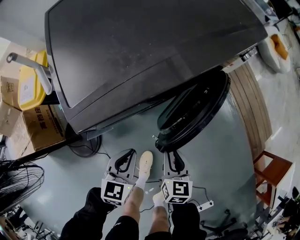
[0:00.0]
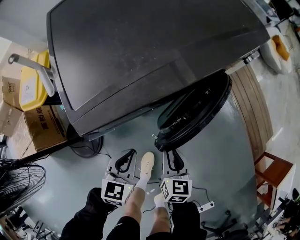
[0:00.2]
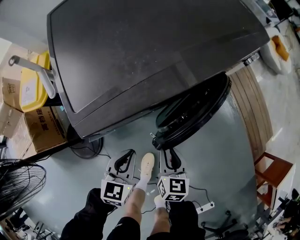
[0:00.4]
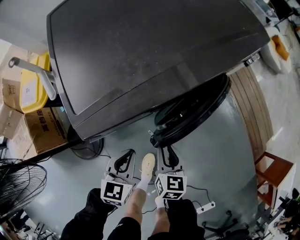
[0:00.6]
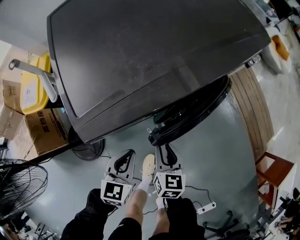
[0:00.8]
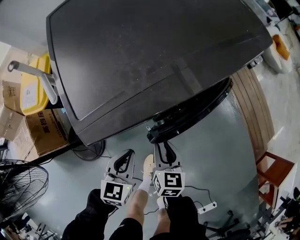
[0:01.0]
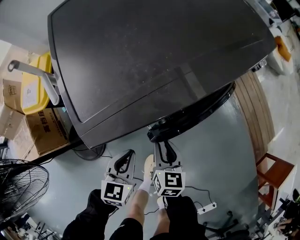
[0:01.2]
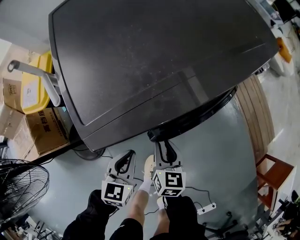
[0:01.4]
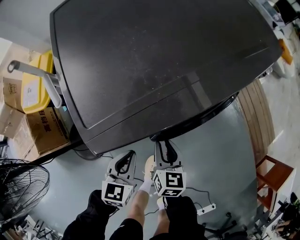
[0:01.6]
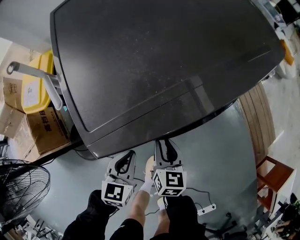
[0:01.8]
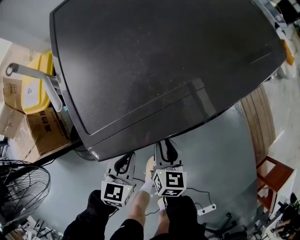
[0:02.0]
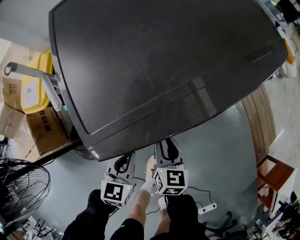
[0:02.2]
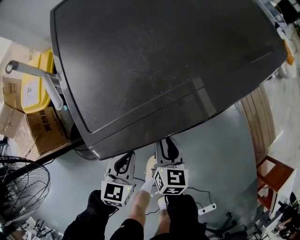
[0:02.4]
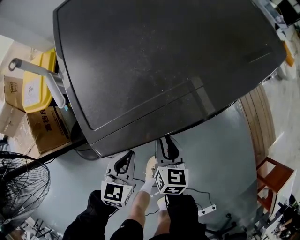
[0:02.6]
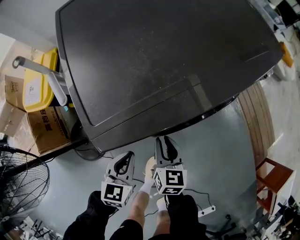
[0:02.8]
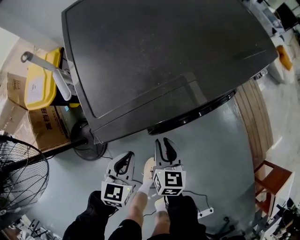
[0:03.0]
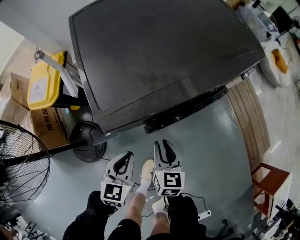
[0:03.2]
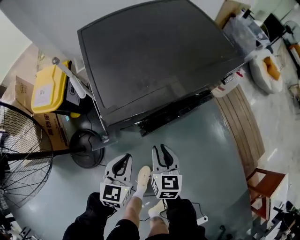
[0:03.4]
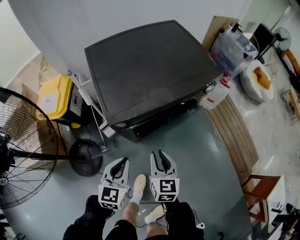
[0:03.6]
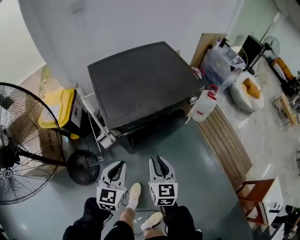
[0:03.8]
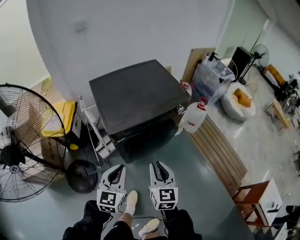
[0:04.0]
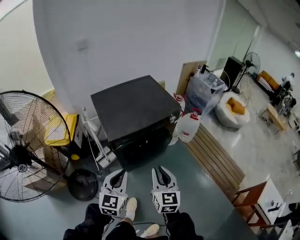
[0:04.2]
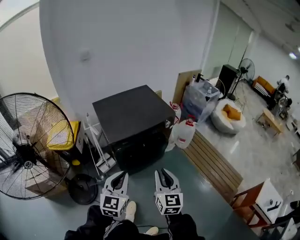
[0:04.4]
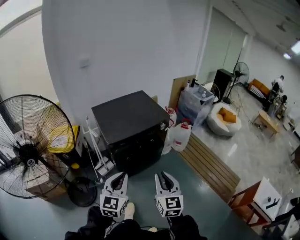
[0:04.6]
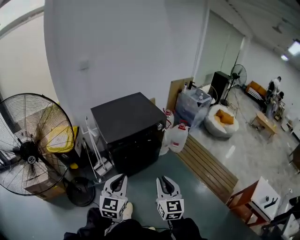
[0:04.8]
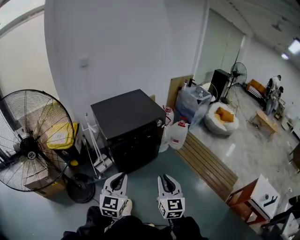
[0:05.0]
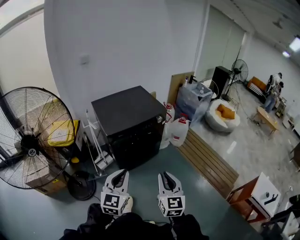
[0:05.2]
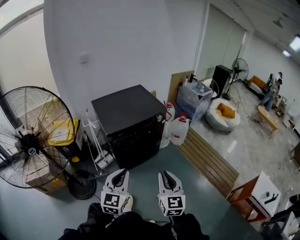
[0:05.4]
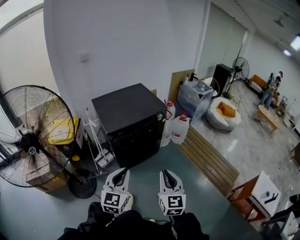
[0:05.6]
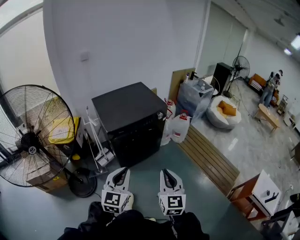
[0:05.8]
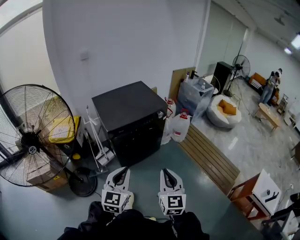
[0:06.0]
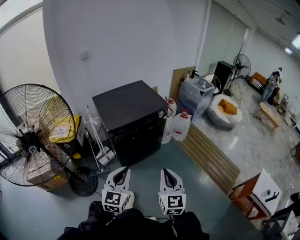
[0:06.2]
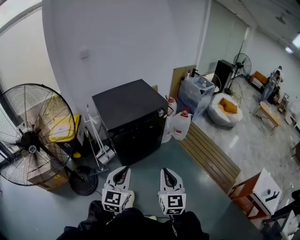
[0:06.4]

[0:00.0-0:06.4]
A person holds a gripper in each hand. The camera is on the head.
0:00.0 to 0:01.6: The right gripper shifts approximately 10 cm to the left and forward. The left gripper heads to the left, covering roughly 5 cm.
0:01.6 to 0:03.2: The right gripper travels upward by some 5 cm. Meanwhile the left gripper ends up some 5 cm from where it was.
0:03.2 to 0:04.8: The left gripper moves upward and backward, roughly 60 cm, and swivels approximately 30 degrees; the right gripper shifts about 60 cm upward, backward and to the right, and turns by about 30 degrees.
0:04.8 to 0:06.4: The grippers move only a little.

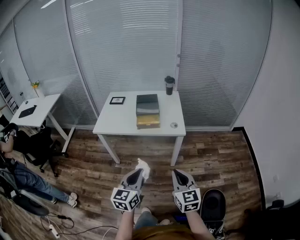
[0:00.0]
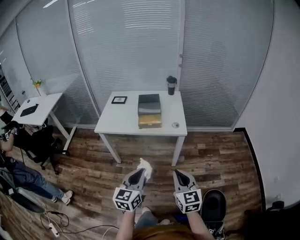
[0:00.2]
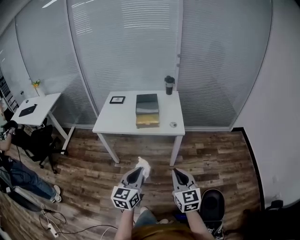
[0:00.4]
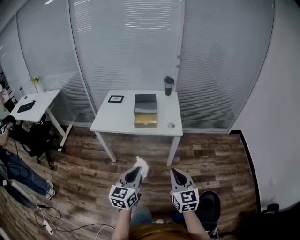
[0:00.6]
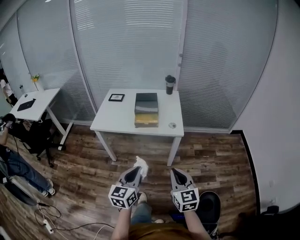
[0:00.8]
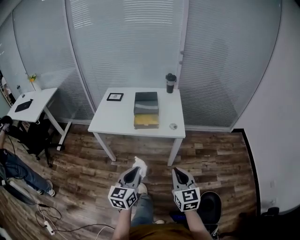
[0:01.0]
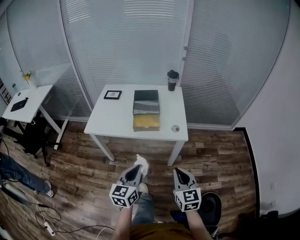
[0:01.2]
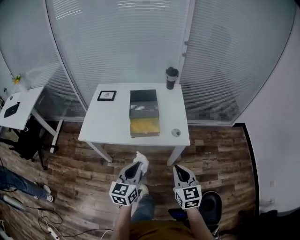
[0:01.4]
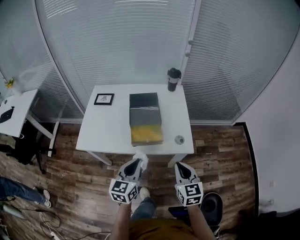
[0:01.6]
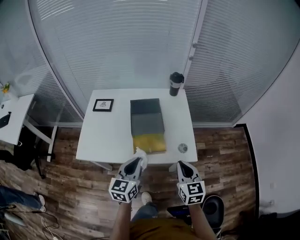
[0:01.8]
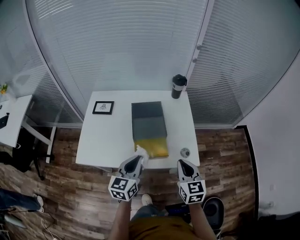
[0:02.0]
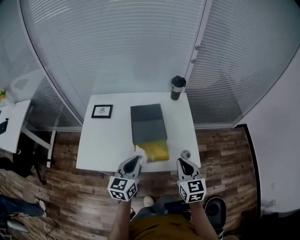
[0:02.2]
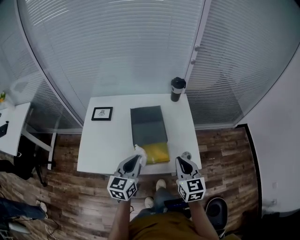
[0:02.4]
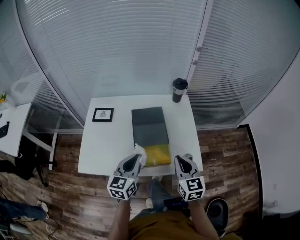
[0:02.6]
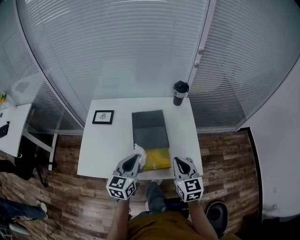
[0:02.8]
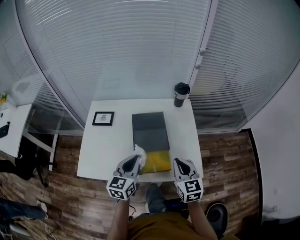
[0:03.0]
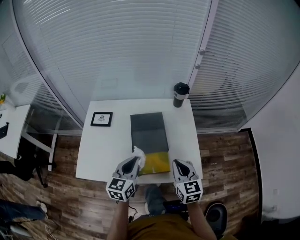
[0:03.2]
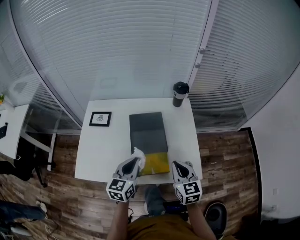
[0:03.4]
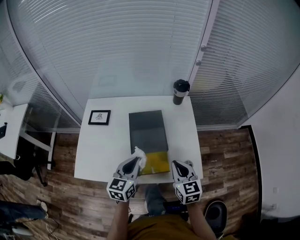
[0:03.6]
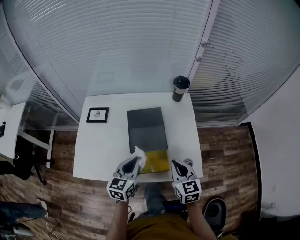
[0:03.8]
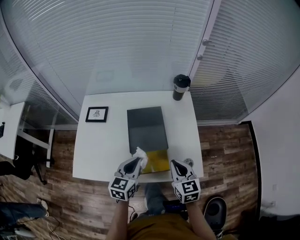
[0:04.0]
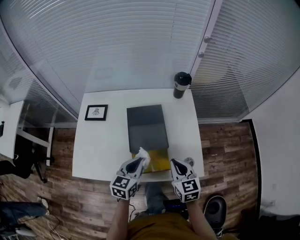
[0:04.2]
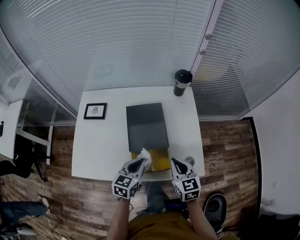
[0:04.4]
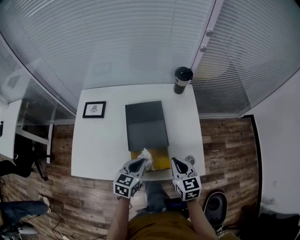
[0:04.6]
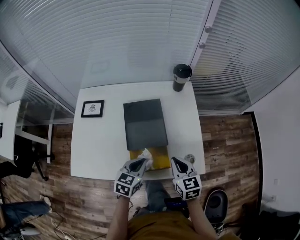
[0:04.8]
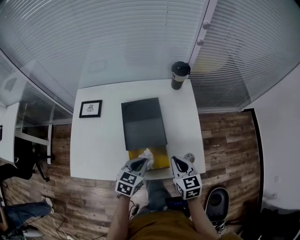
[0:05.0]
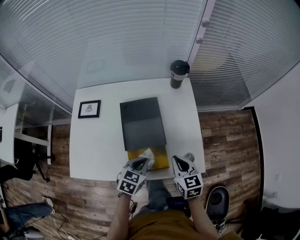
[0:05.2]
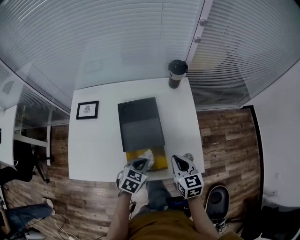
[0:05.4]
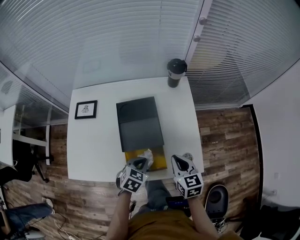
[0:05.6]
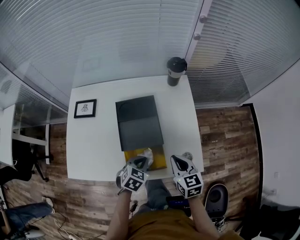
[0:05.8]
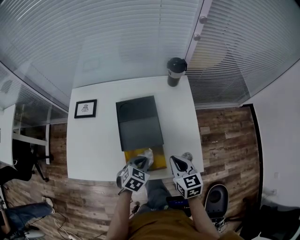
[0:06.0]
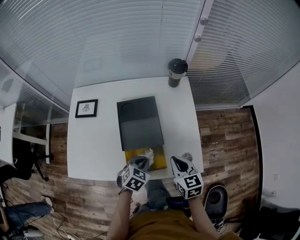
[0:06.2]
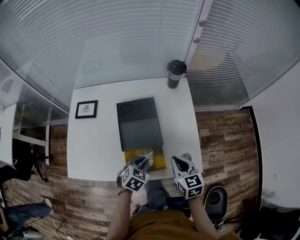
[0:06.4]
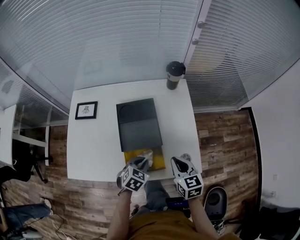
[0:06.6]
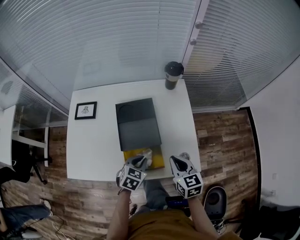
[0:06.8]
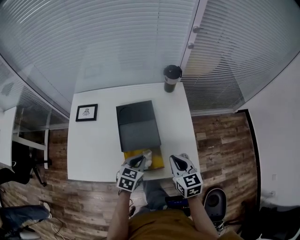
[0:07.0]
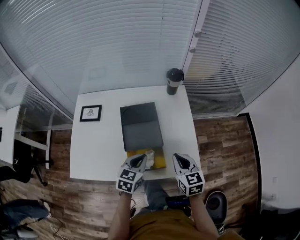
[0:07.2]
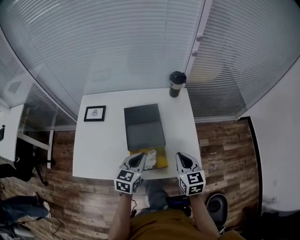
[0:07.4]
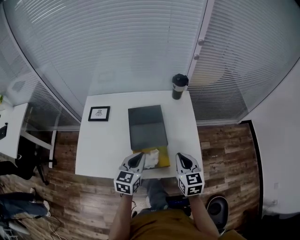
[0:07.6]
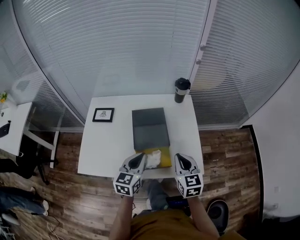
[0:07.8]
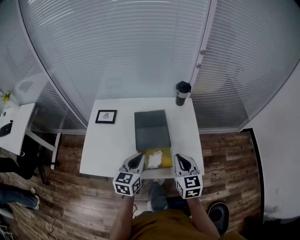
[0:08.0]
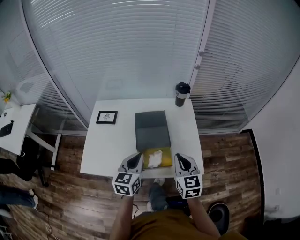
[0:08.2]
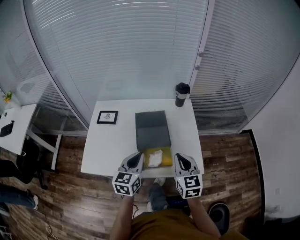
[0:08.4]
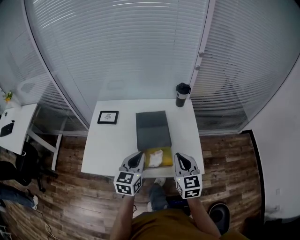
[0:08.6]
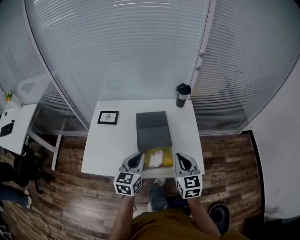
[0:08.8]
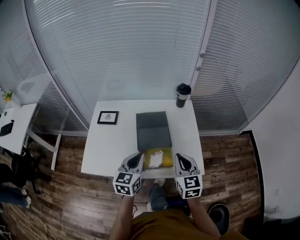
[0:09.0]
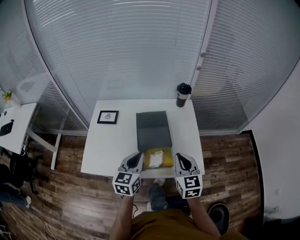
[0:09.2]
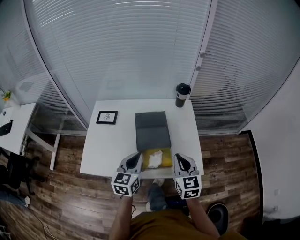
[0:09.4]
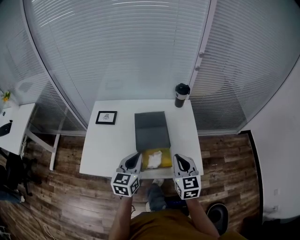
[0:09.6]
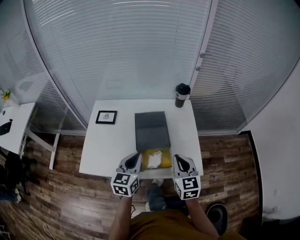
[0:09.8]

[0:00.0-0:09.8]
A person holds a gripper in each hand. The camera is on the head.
0:00.0 to 0:01.4: Both grippers move forward, some 20 cm.
0:01.4 to 0:02.8: Both grippers move forward, roughly 25 cm.
0:02.8 to 0:04.2: The two grippers go about 5 cm downward.
0:04.2 to 0:05.6: The right gripper ends up about 5 cm from where it was. The left gripper goes some 10 cm downward, and rotates some 30 degrees.
0:05.6 to 0:07.0: The grippers move only a little.
0:07.0 to 0:08.4: The left gripper moves upward and to the left, roughly 15 cm, and rotates some 30 degrees. The right gripper is displaced upward by some 10 cm.
0:08.4 to 0:09.8: The two grippers keep their place.

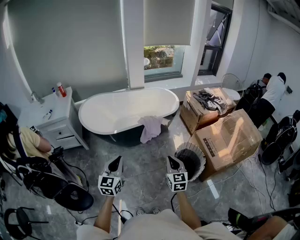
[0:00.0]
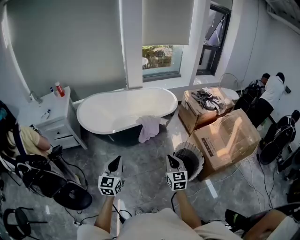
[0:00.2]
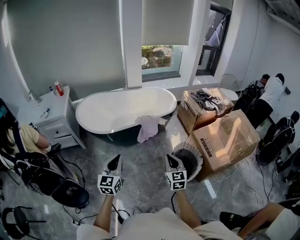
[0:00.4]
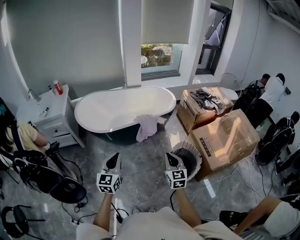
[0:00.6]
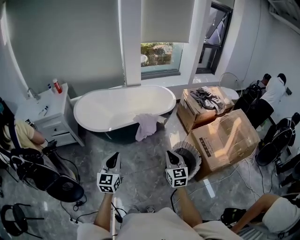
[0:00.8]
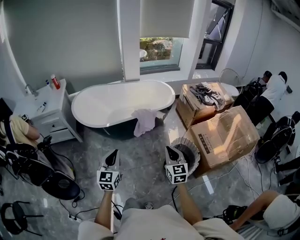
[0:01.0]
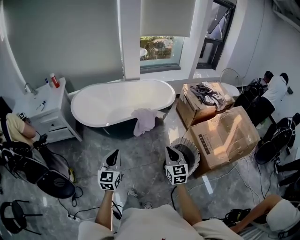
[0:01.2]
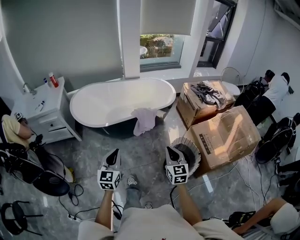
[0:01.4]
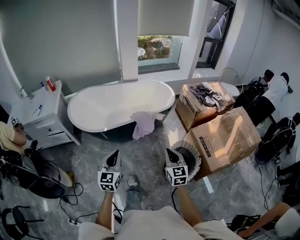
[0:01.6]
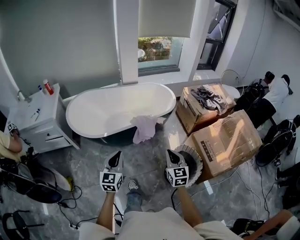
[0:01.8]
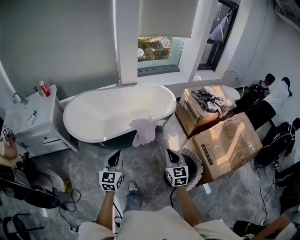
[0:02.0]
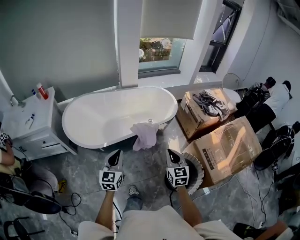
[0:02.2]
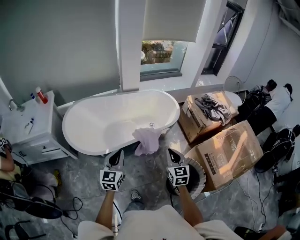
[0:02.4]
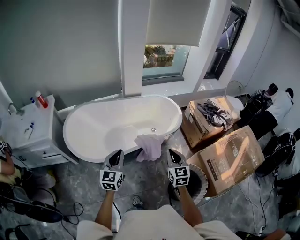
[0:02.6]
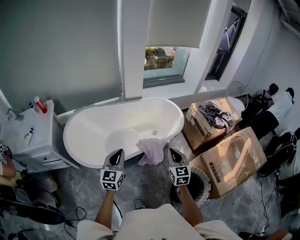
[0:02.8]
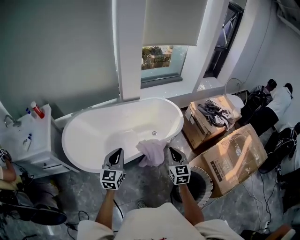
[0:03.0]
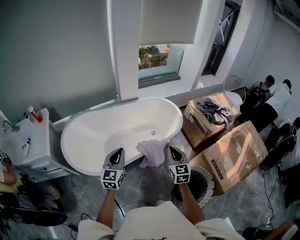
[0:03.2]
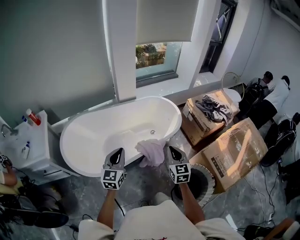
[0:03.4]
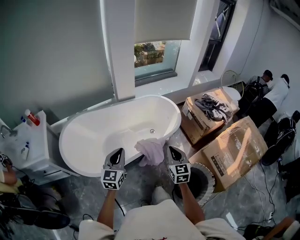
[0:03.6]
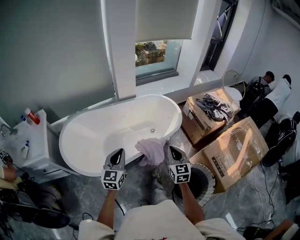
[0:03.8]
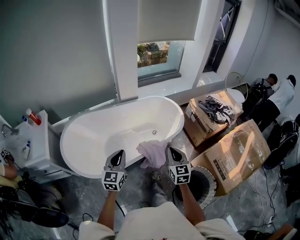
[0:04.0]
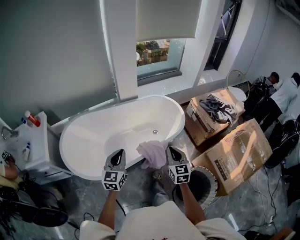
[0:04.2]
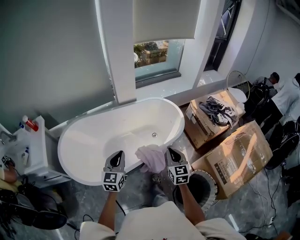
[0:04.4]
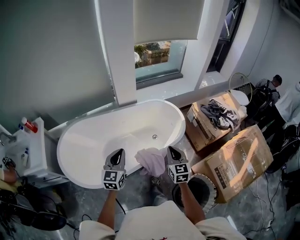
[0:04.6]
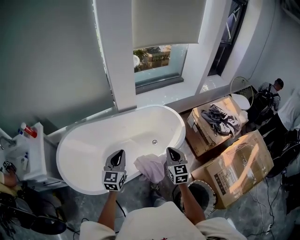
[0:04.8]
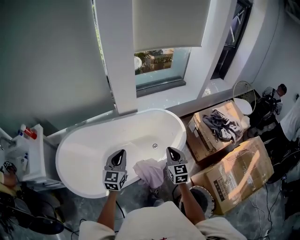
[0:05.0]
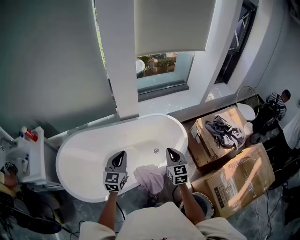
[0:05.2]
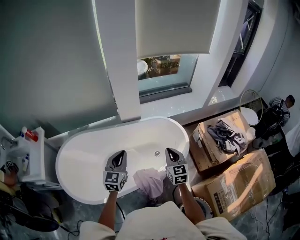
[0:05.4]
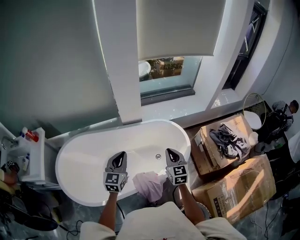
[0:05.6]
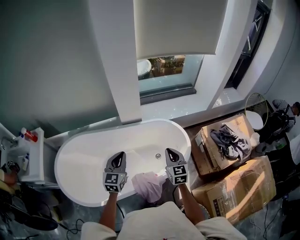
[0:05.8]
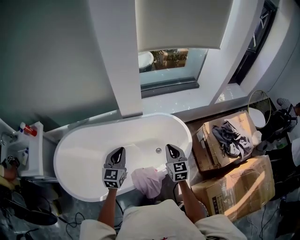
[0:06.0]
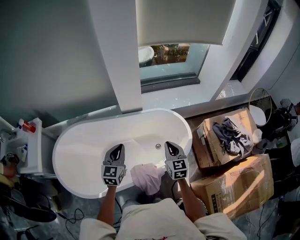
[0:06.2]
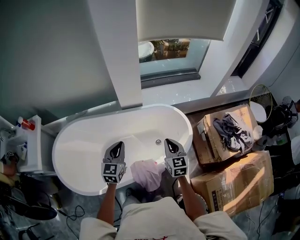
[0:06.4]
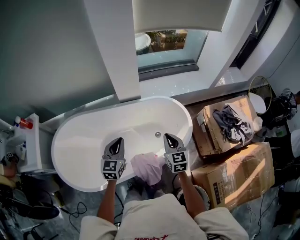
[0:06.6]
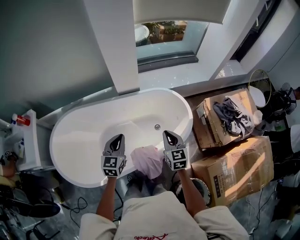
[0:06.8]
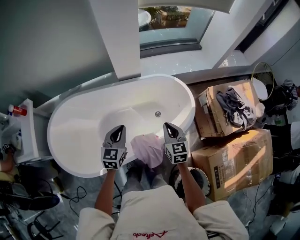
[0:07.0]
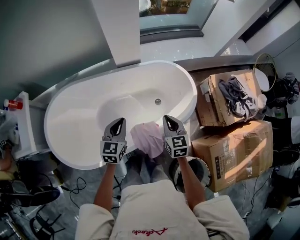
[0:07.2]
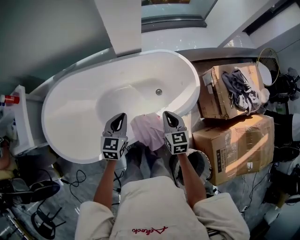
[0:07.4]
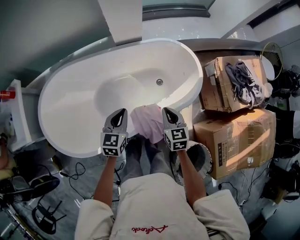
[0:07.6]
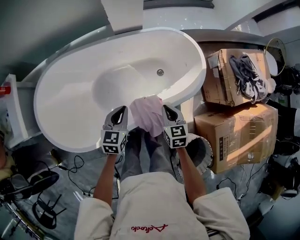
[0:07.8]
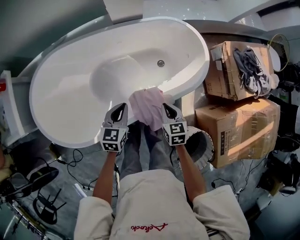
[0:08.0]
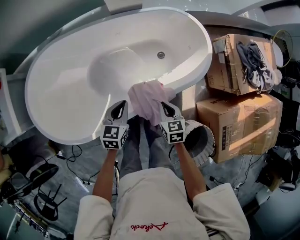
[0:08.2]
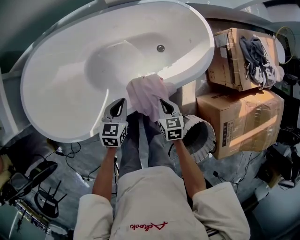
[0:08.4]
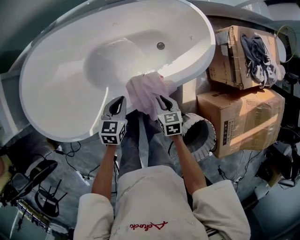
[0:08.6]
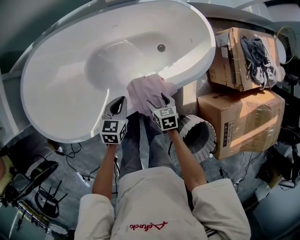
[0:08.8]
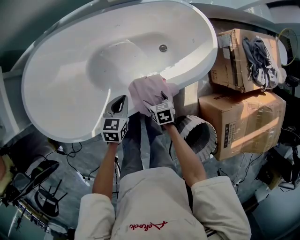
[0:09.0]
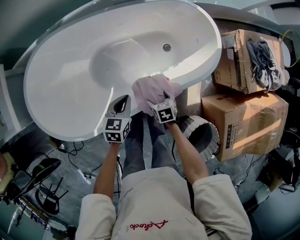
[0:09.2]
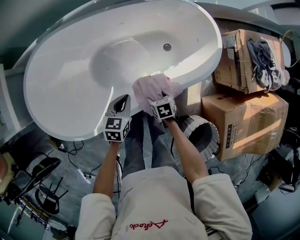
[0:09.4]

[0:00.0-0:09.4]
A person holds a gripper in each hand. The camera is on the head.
0:00.0 to 0:01.6: The grippers both shift forward by some 10 cm.
0:01.6 to 0:03.2: The grippers both shift forward by approximately 35 cm.
0:03.2 to 0:04.8: The two grippers go roughly 20 cm forward.
0:04.8 to 0:06.2: Both grippers travel together forward, about 20 cm.
0:06.2 to 0:07.8: The grippers both shift downward and backward by roughly 20 cm. The left gripper changes its angle by approximately 20 degrees. Meanwhile the right gripper turns by some 20 degrees.
0:07.8 to 0:09.4: The right gripper heads downward, covering approximately 20 cm, turns by approximately 40 degrees, and opens, while the left gripper heads downward, covering some 10 cm.
